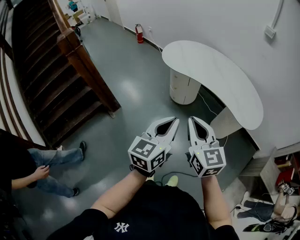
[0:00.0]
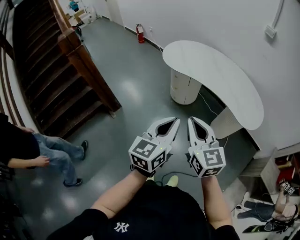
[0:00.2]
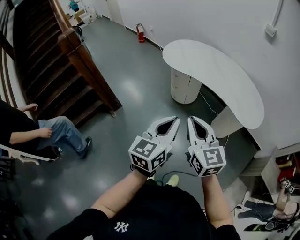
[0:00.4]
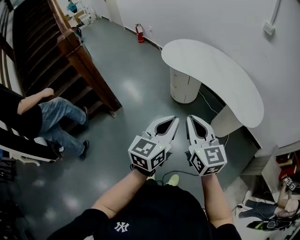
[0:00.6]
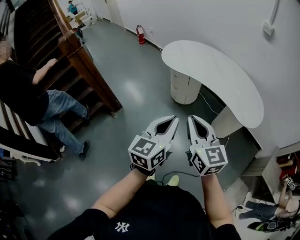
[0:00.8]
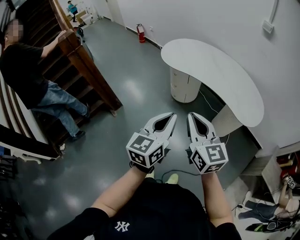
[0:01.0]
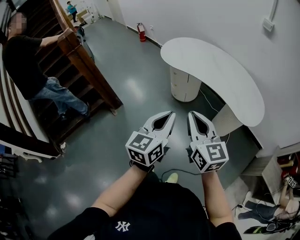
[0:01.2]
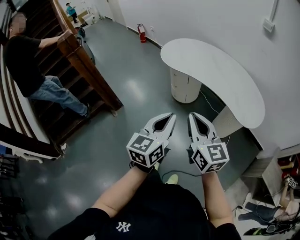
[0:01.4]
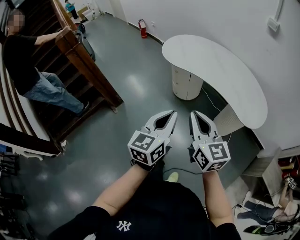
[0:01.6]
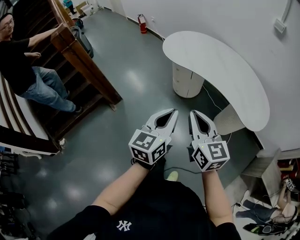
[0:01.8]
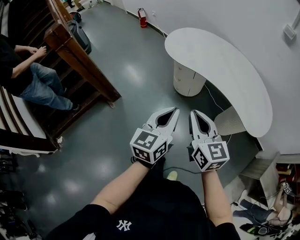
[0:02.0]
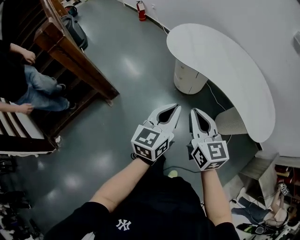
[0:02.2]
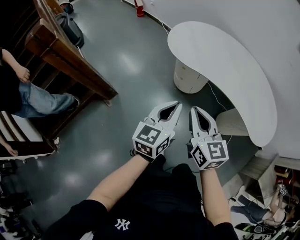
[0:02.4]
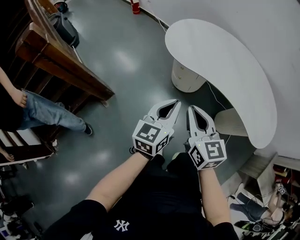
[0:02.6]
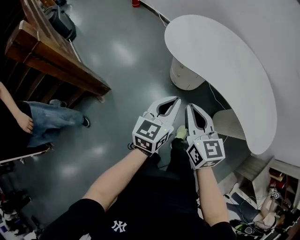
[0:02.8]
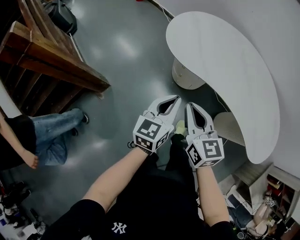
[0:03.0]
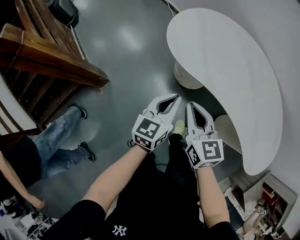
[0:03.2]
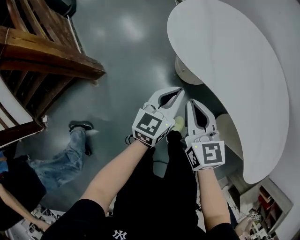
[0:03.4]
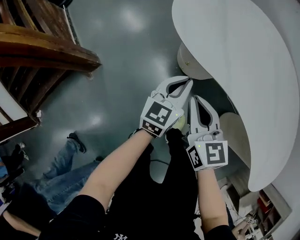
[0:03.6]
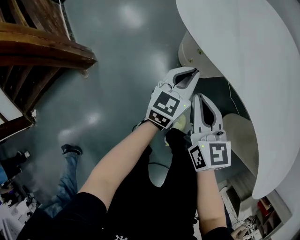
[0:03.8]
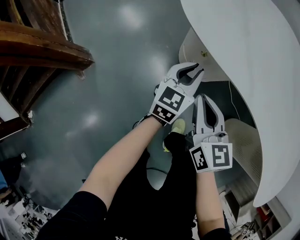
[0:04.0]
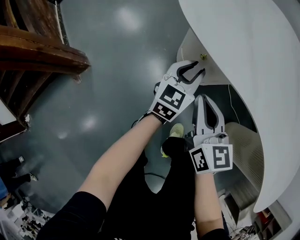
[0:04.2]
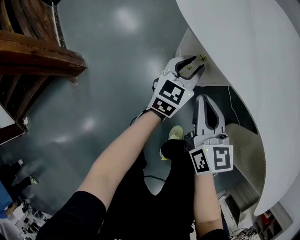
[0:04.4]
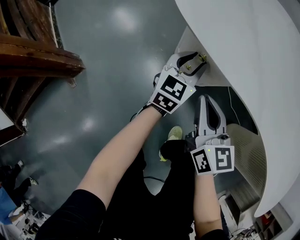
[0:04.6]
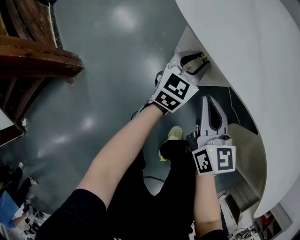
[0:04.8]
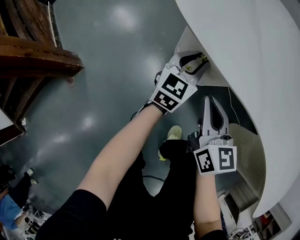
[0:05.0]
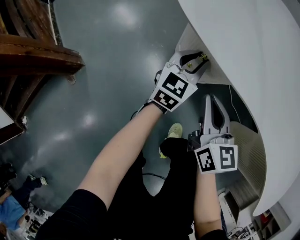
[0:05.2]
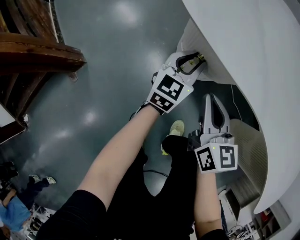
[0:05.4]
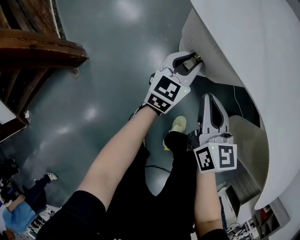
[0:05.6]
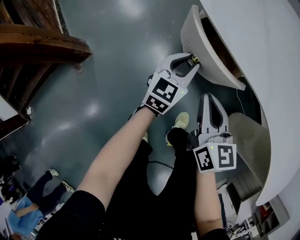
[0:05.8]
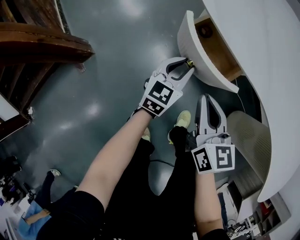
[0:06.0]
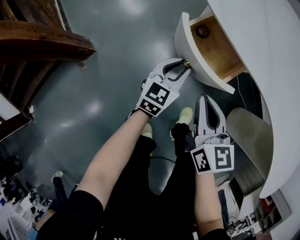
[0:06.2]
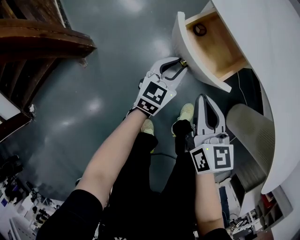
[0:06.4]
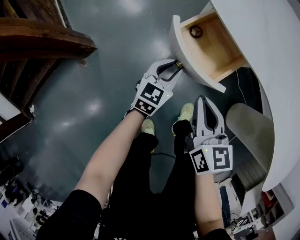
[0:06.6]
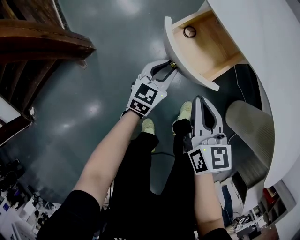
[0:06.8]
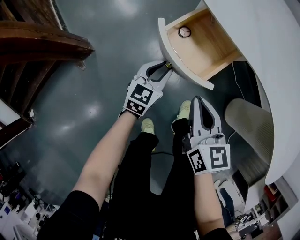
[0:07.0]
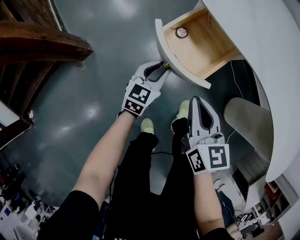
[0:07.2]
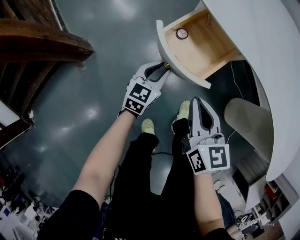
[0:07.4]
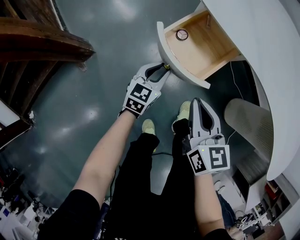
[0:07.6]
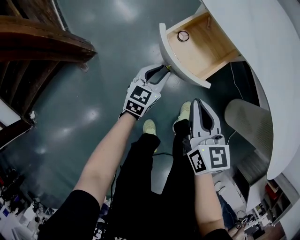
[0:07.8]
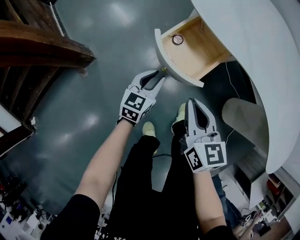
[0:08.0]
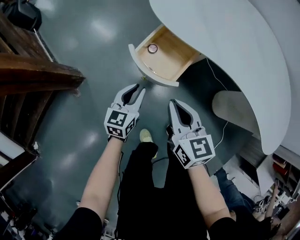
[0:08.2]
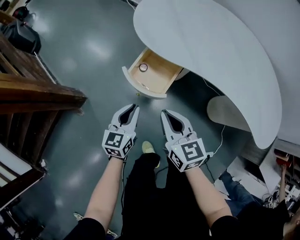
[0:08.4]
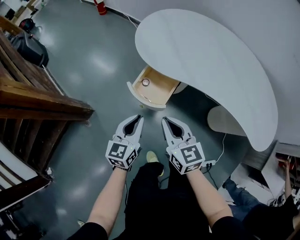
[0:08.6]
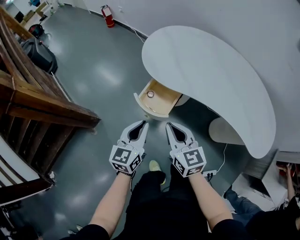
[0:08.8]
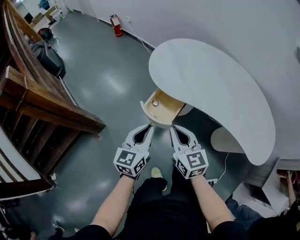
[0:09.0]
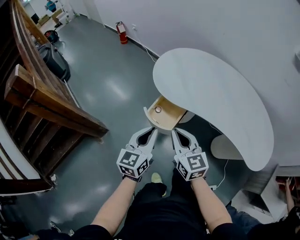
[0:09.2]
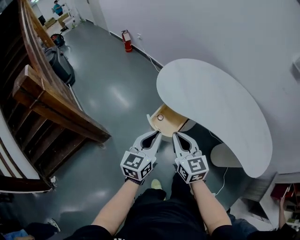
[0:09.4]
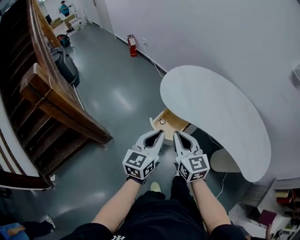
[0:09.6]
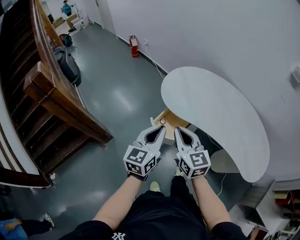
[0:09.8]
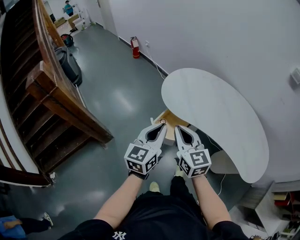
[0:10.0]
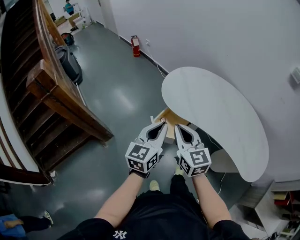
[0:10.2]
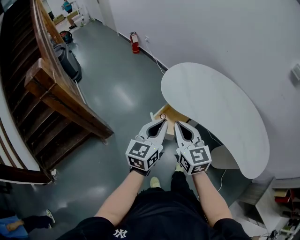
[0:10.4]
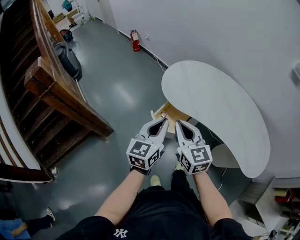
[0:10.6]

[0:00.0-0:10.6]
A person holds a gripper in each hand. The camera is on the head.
0:00.0 to 0:01.6: The right gripper is displaced to the right by roughly 5 cm; the left gripper changes place by some 5 cm.
0:01.6 to 0:03.0: Both grippers travel together forward and downward, approximately 40 cm.
0:03.0 to 0:04.6: Both grippers move downward and forward, approximately 40 cm. The left gripper opens.
0:04.6 to 0:06.0: The left gripper moves backward and to the left, some 10 cm. Meanwhile the right gripper moves backward, approximately 5 cm.
0:06.0 to 0:07.6: The left gripper heads backward and to the left, covering some 15 cm. Meanwhile the right gripper shifts some 10 cm backward.
0:07.6 to 0:09.0: The left gripper moves upward, roughly 40 cm. Meanwhile the right gripper is displaced upward by roughly 25 cm.
0:09.0 to 0:10.6: Both grippers move upward, roughly 15 cm.

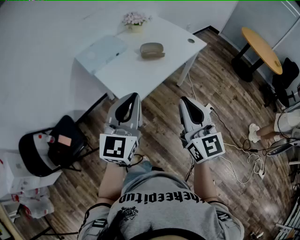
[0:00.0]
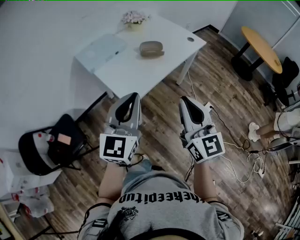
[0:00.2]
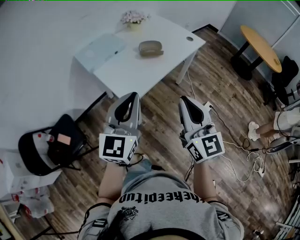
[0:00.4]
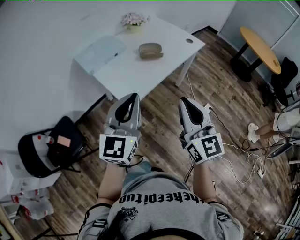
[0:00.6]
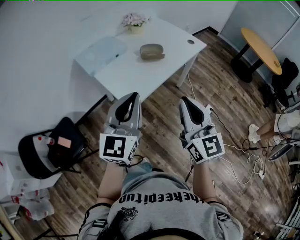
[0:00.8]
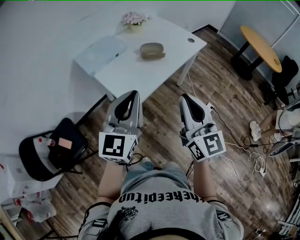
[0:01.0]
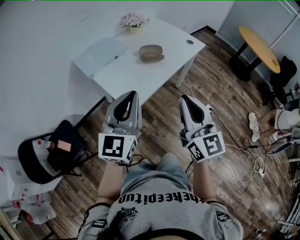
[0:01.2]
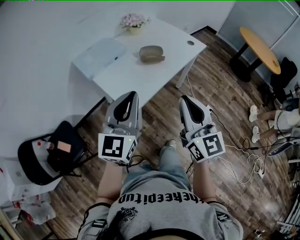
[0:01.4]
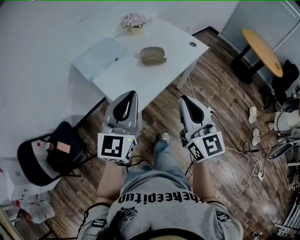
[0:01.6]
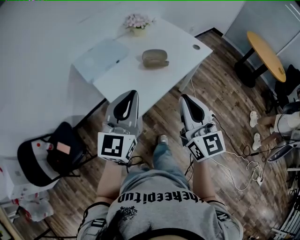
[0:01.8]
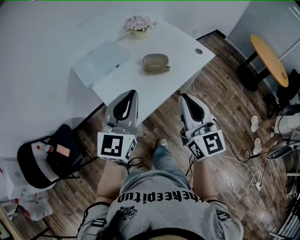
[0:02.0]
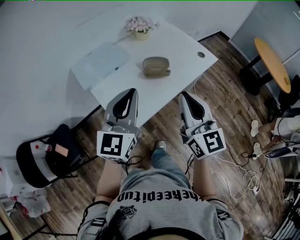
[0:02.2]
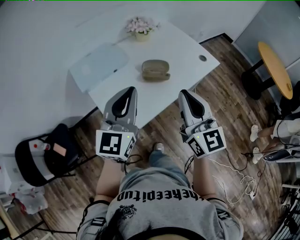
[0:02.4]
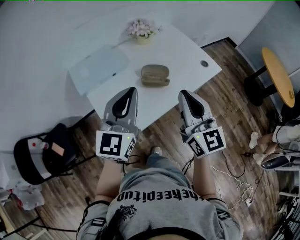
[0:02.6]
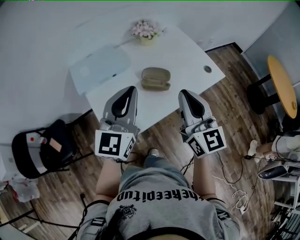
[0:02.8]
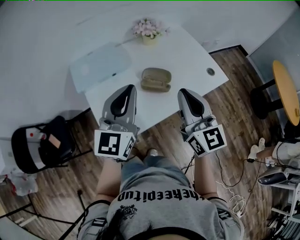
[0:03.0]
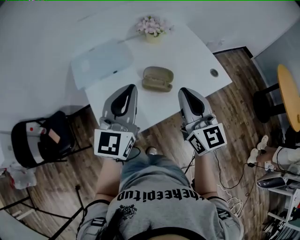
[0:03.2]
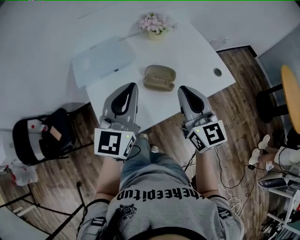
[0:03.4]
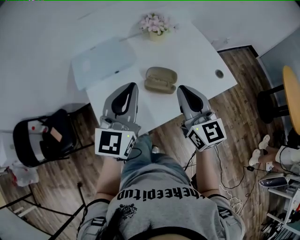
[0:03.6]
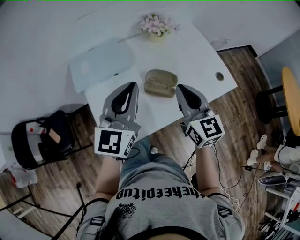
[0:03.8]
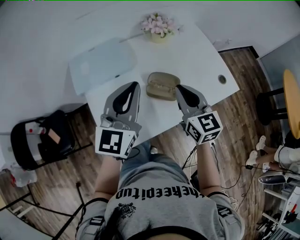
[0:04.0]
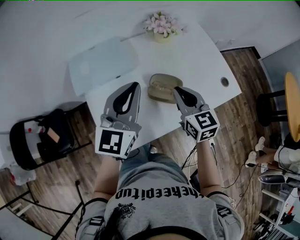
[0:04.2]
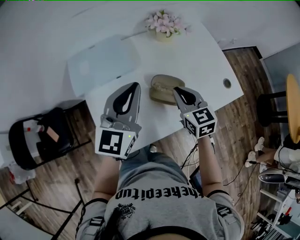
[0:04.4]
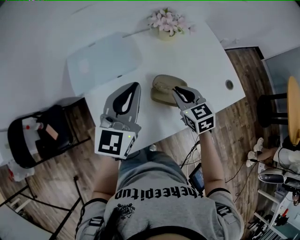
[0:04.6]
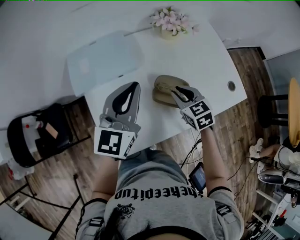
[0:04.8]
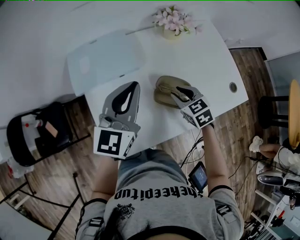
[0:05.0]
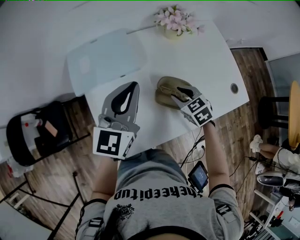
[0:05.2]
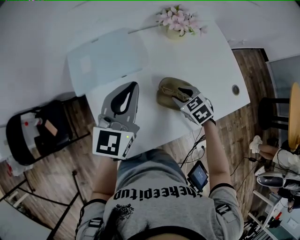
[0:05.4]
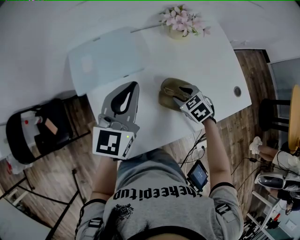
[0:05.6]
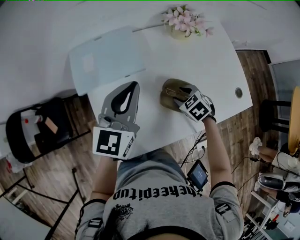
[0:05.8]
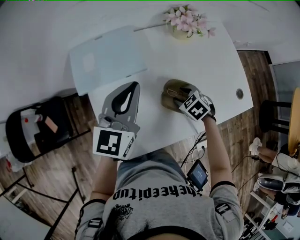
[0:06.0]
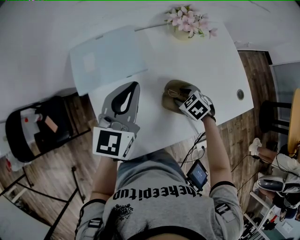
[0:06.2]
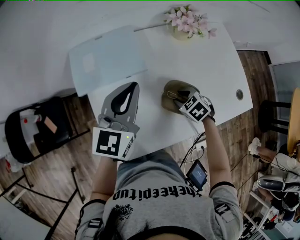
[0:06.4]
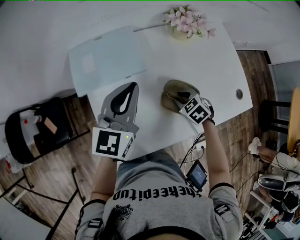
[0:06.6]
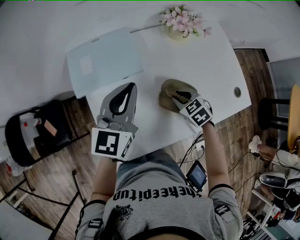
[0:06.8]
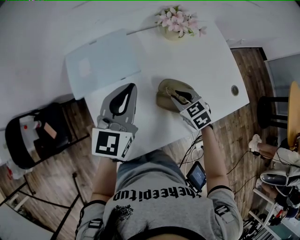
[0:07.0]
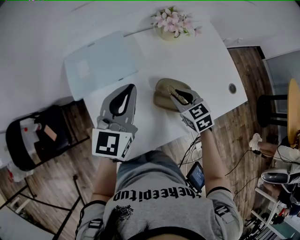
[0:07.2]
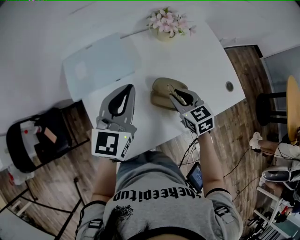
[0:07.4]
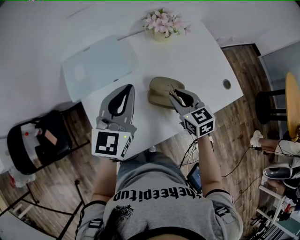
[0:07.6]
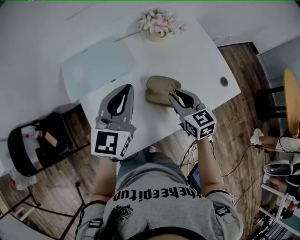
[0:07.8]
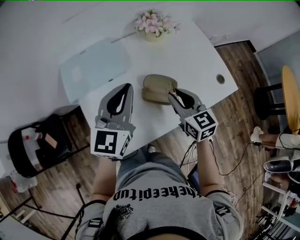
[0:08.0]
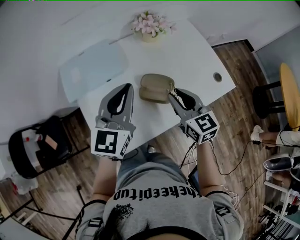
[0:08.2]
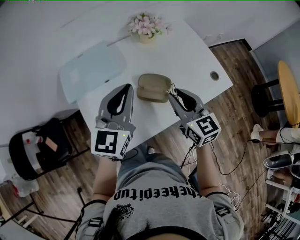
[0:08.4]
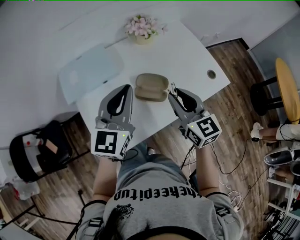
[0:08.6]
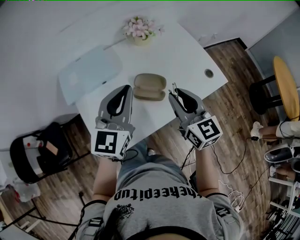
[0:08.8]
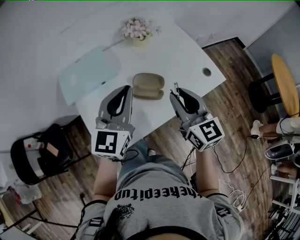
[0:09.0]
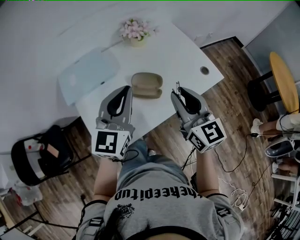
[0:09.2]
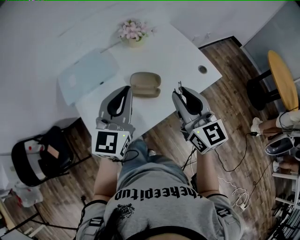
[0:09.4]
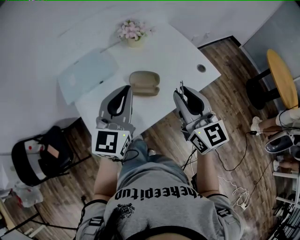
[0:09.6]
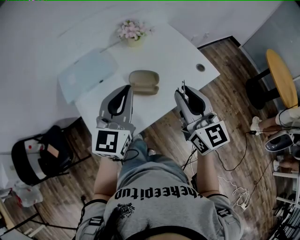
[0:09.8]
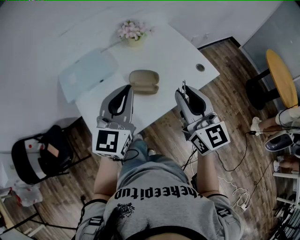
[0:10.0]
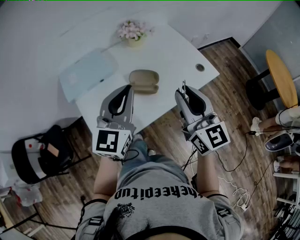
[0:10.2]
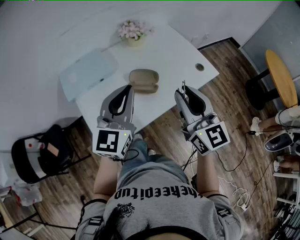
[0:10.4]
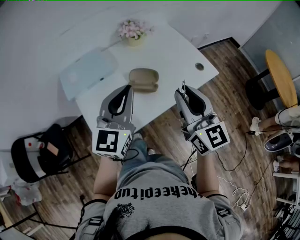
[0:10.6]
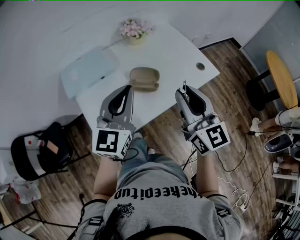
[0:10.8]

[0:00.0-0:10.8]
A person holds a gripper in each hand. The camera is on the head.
0:00.0 to 0:01.6: Both grippers move forward, about 5 cm.
0:01.6 to 0:03.0: The left gripper heads forward and to the right, covering about 20 cm, while the right gripper is displaced forward by approximately 25 cm.
0:03.0 to 0:04.6: The left gripper heads forward and downward, covering some 15 cm. Meanwhile the right gripper shifts roughly 25 cm downward and forward, and points its fingers roughly 40 degrees further downward.
0:04.6 to 0:06.2: The left gripper shifts approximately 5 cm forward, while the right gripper heads downward, covering about 15 cm, angles its fingers downward, by some 30 degrees, and opens.
0:06.2 to 0:07.8: The left gripper shifts by approximately 5 cm. The right gripper moves upward, some 15 cm, tilts its fingers roughly 40 degrees upward, and closes up.
0:07.8 to 0:09.2: The right gripper goes approximately 20 cm upward and backward, and rotates roughly 20 degrees, while the left gripper shifts roughly 10 cm backward and to the right.
0:09.2 to 0:10.8: The two grippers go some 5 cm backward.

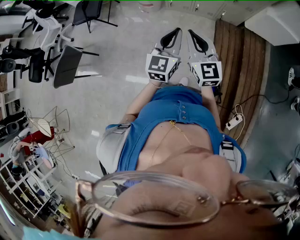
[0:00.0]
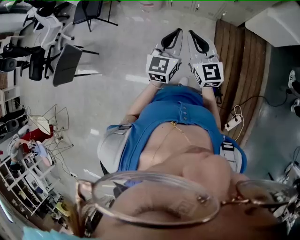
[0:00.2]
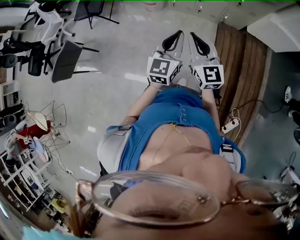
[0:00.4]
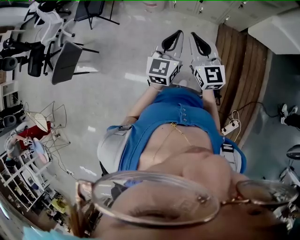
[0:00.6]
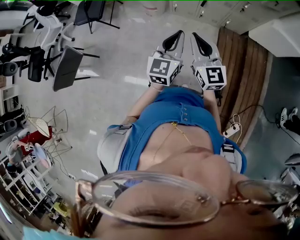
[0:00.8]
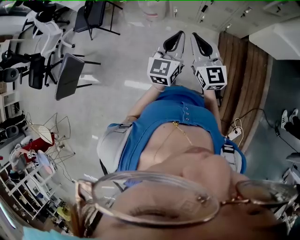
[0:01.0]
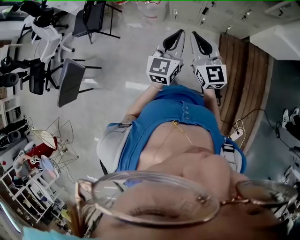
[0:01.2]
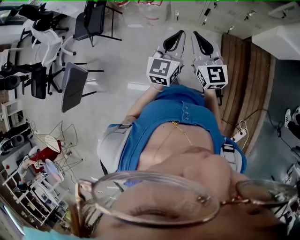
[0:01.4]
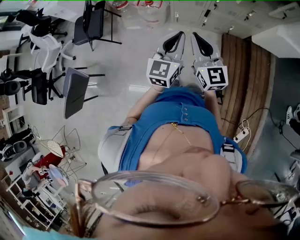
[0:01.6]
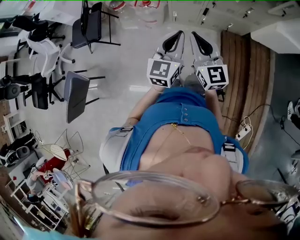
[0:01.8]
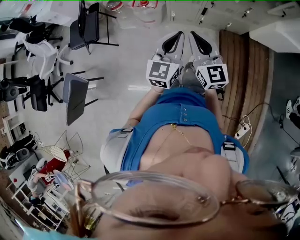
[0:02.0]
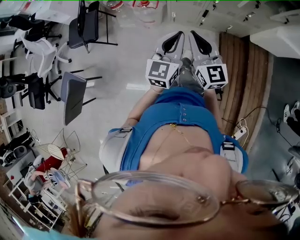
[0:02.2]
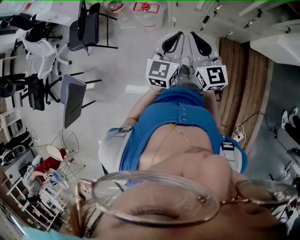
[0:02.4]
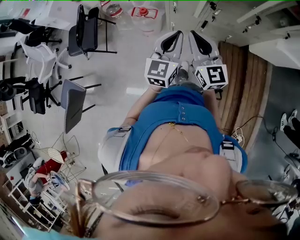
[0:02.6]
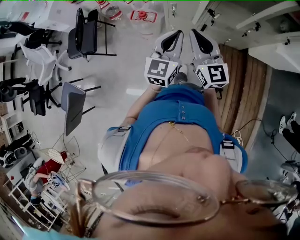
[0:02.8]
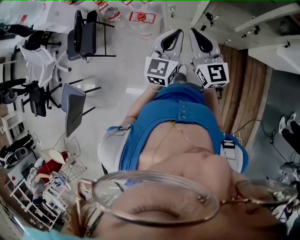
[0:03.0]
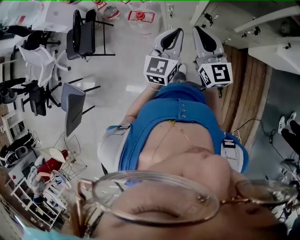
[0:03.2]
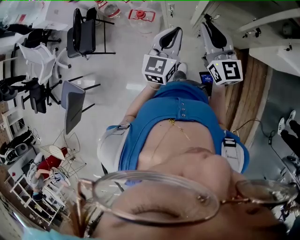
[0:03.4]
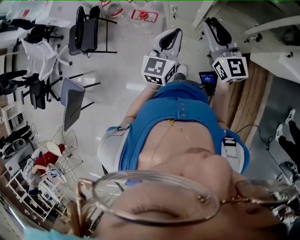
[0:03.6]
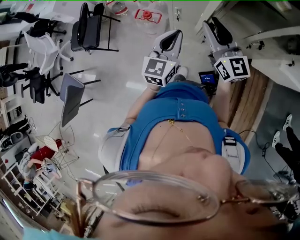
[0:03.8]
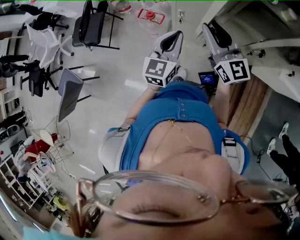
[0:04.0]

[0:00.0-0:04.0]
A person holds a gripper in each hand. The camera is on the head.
0:00.0 to 0:01.4: The grippers both shift forward by about 20 cm.
0:01.4 to 0:02.6: Both grippers move forward, some 20 cm.
0:02.6 to 0:04.0: The left gripper is displaced forward by some 10 cm; the right gripper goes some 15 cm forward and to the right, and opens up.
